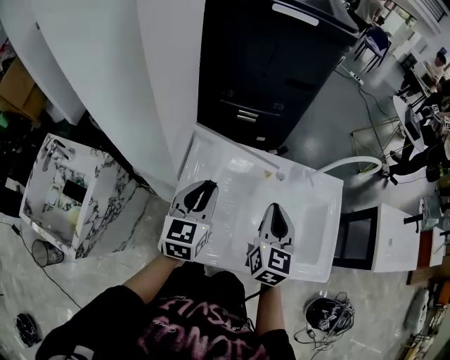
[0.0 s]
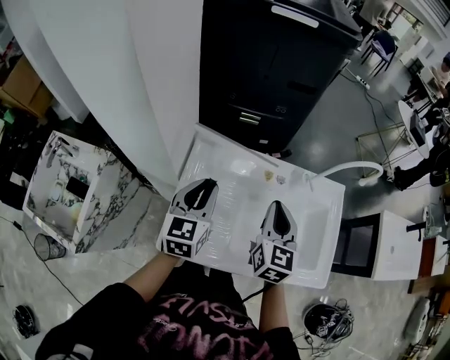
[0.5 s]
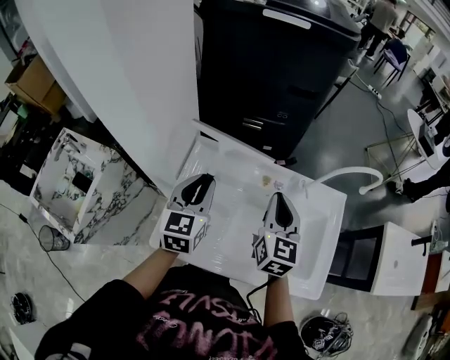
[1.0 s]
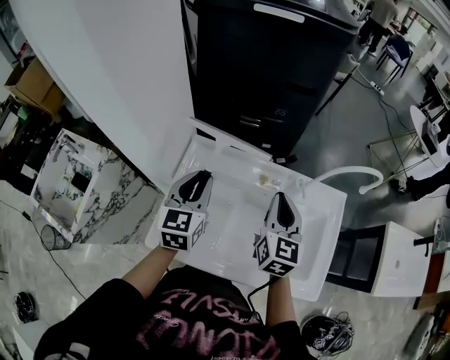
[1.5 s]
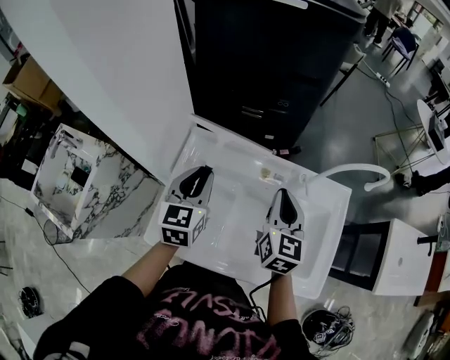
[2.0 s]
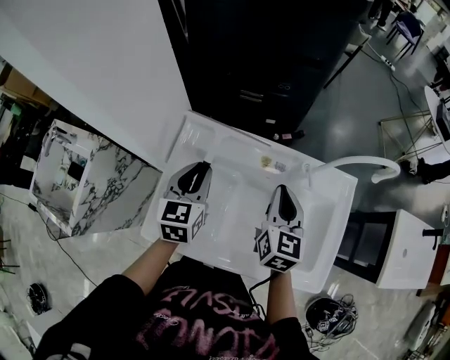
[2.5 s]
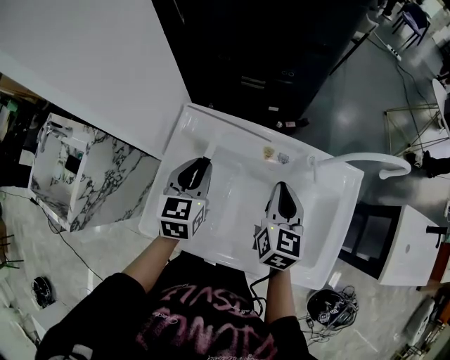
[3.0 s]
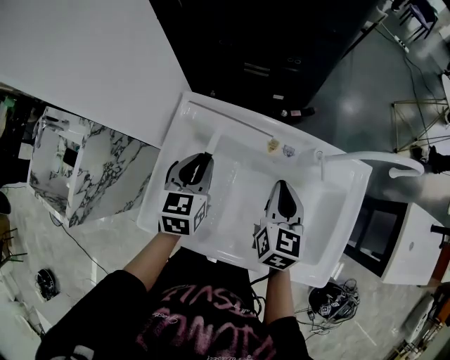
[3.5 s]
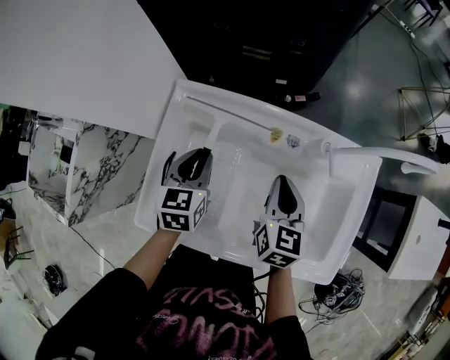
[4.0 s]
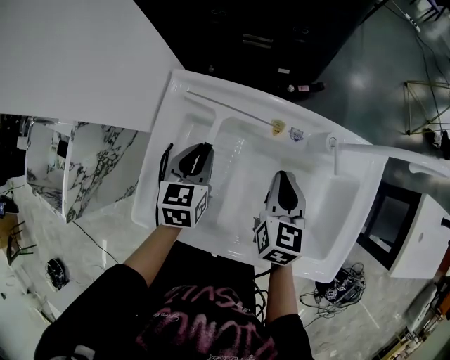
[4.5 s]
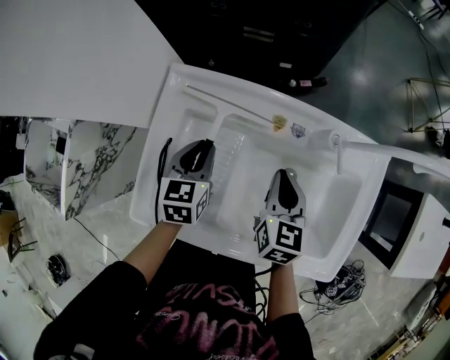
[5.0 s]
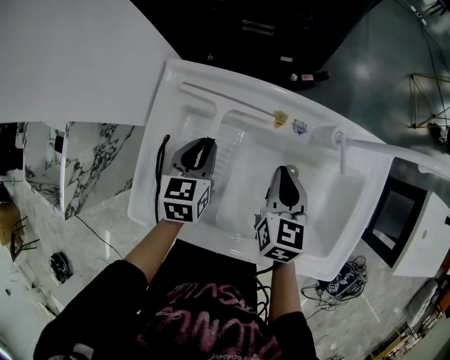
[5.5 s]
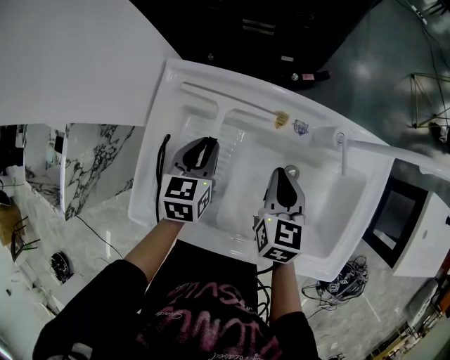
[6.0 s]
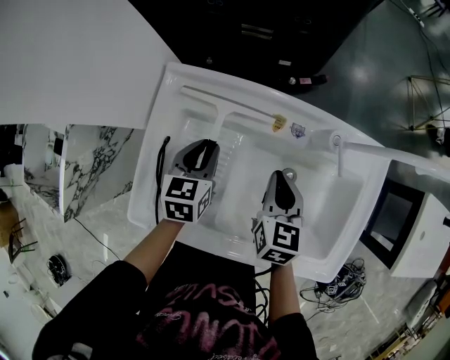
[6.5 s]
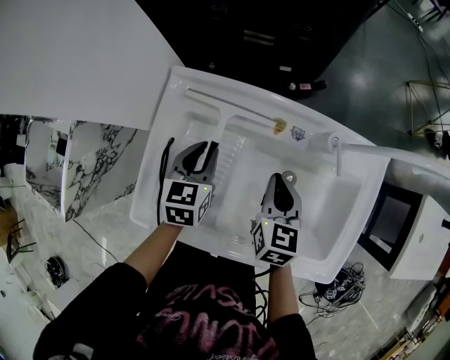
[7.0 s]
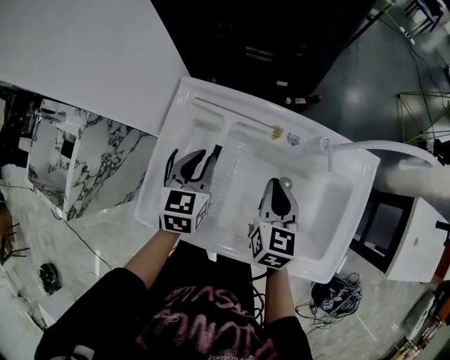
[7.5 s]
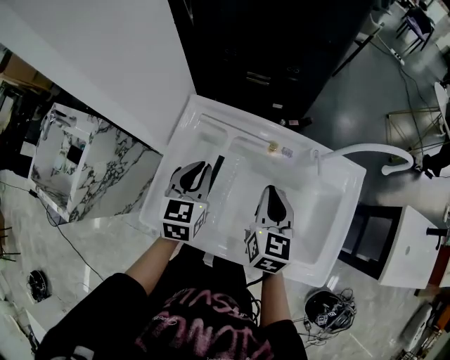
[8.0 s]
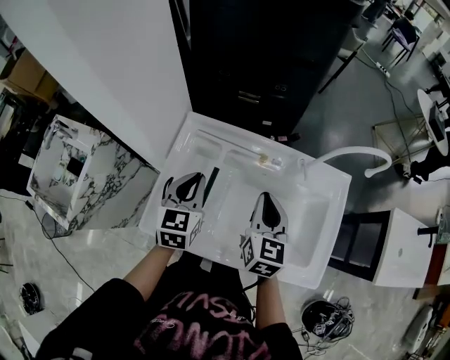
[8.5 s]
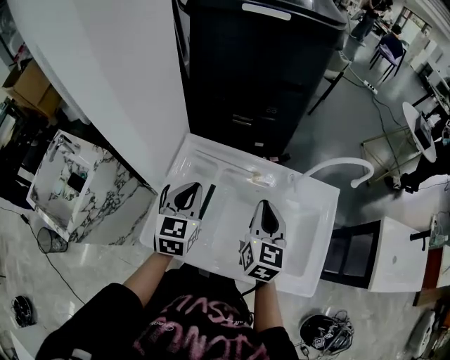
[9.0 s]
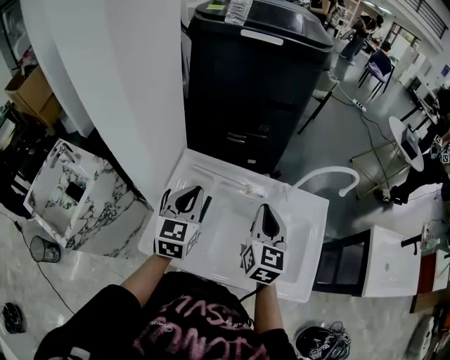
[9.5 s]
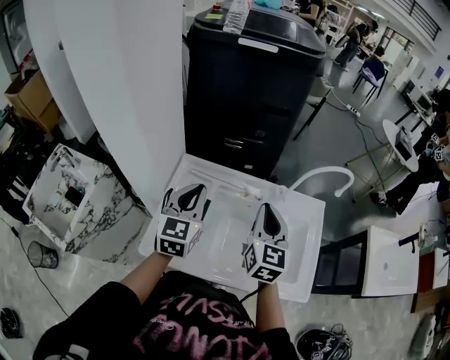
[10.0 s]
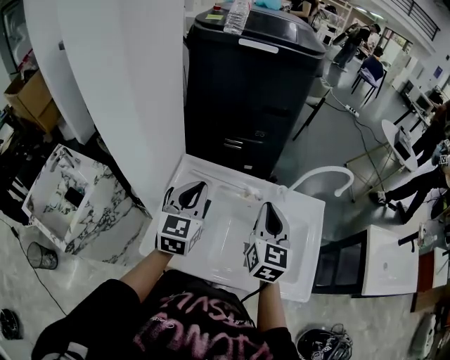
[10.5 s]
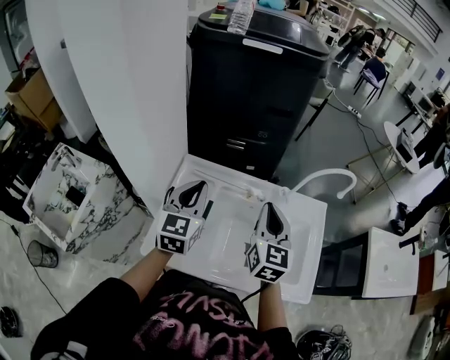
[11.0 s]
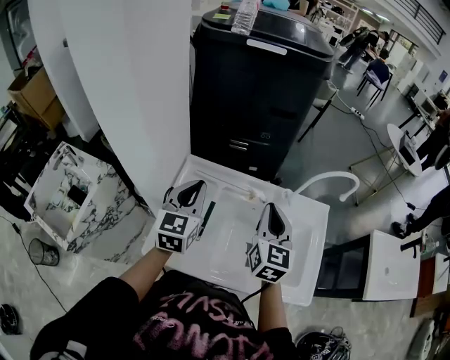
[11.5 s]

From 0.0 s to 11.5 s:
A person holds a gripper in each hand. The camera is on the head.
From 0.0 s to 2.0 s: The left gripper changes place by approximately 5 cm; the right gripper heads forward and to the right, covering approximately 10 cm.
From 2.0 s to 4.0 s: Both grippers travel together downward, about 15 cm.
From 4.0 s to 6.0 s: Both grippers travel together downward, approximately 5 cm.
From 6.0 s to 7.5 s: The grippers both shift upward by roughly 5 cm.
From 7.5 s to 9.5 s: The two grippers go approximately 15 cm upward.
From 9.5 s to 11.5 s: The grippers stay close to where they were, moving slightly.

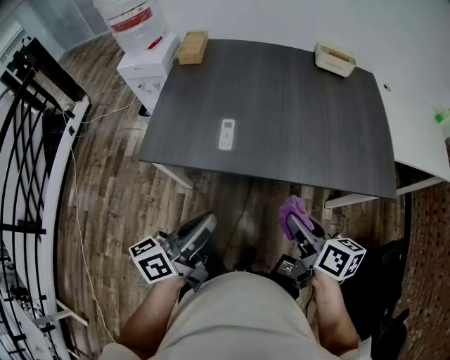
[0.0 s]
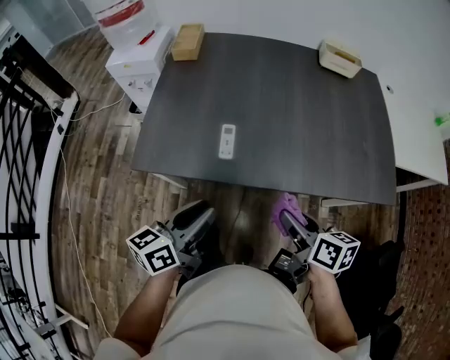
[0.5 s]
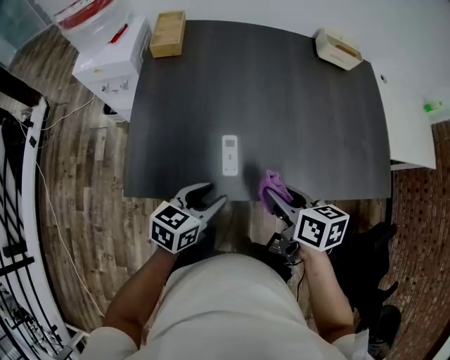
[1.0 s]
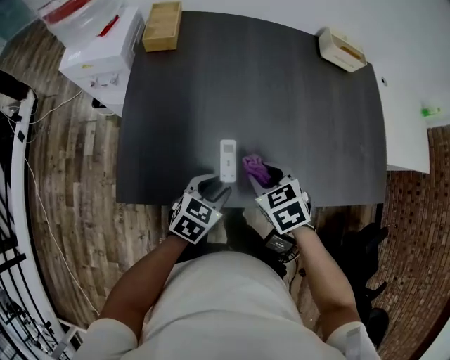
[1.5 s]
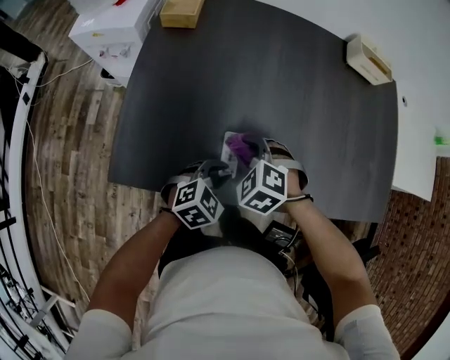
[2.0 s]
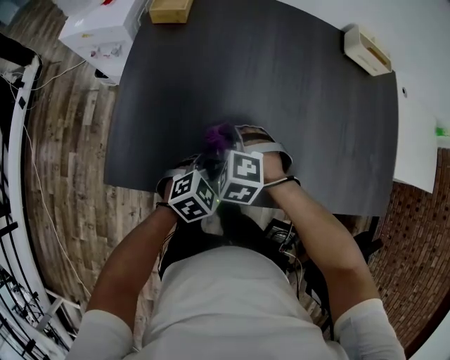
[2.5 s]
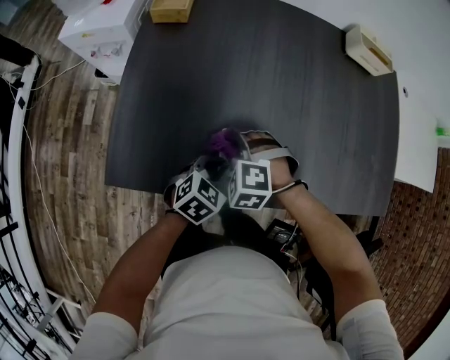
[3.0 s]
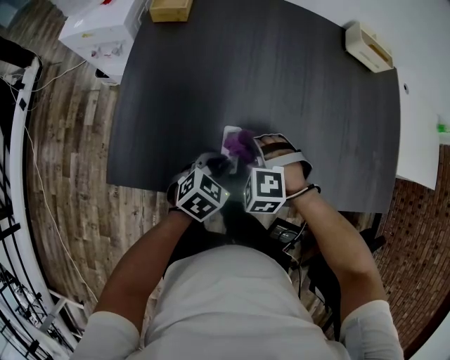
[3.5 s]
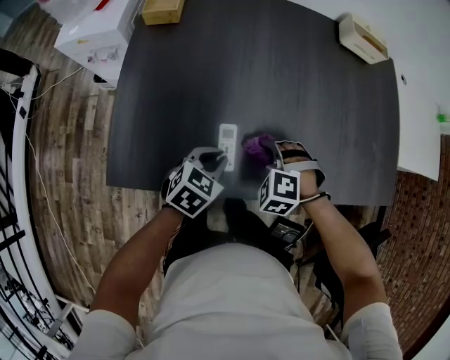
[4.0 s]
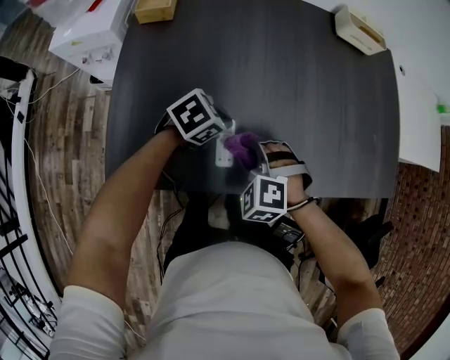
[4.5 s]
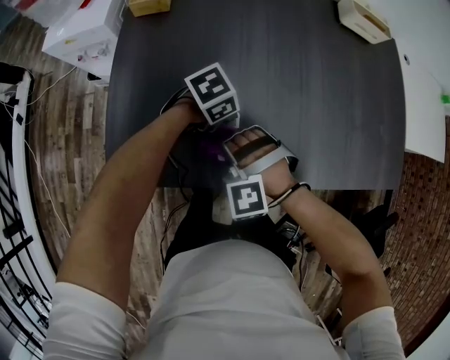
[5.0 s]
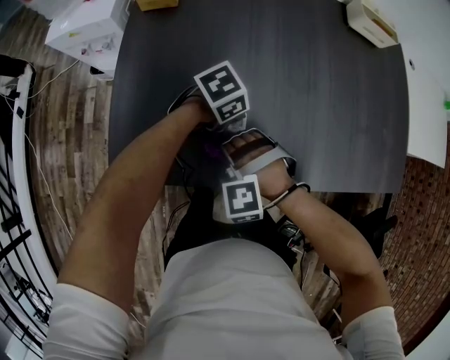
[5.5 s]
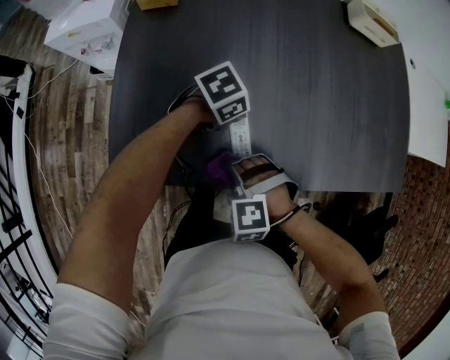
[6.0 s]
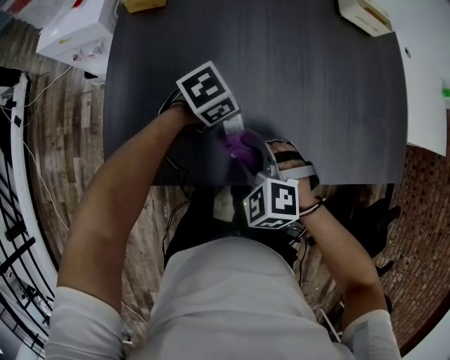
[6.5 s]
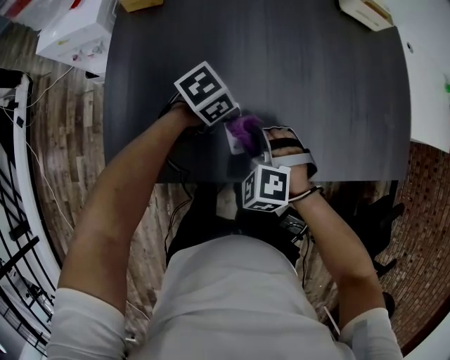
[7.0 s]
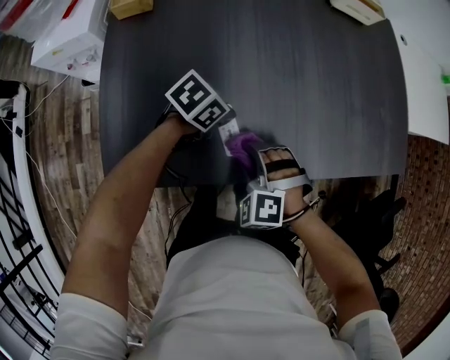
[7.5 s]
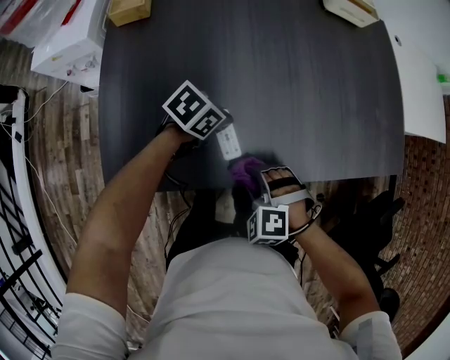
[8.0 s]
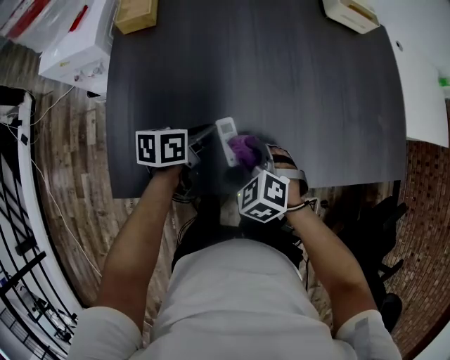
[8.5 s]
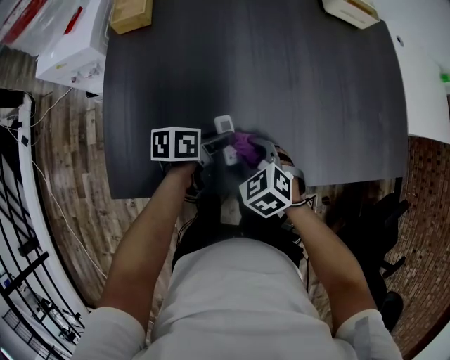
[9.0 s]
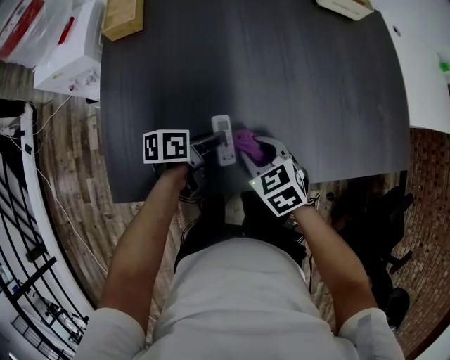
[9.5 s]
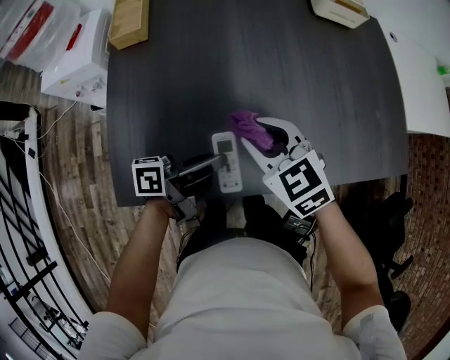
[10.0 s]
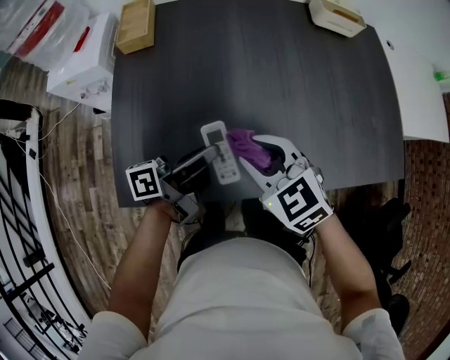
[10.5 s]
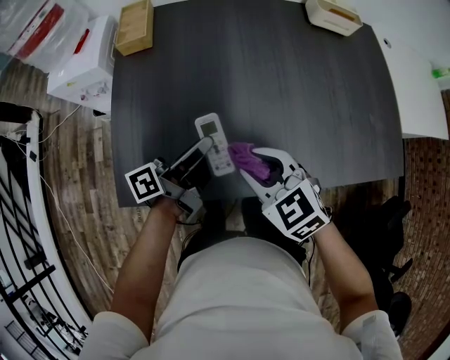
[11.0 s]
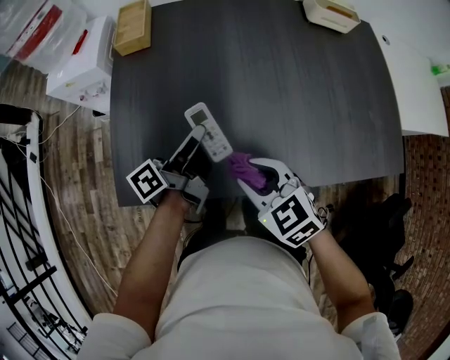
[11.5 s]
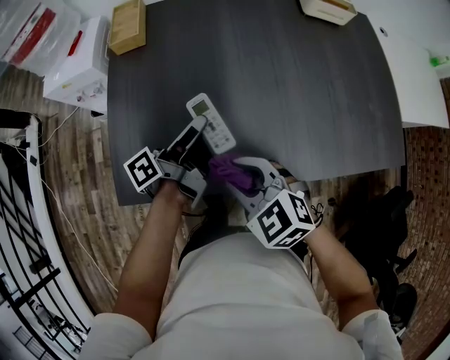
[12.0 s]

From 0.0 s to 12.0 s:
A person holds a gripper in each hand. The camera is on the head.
From 0.0 s to 2.0 s: The left gripper travels forward and downward by some 30 cm, and tips its fingers downward by approximately 50 degrees, while the right gripper shifts some 35 cm forward, to the left and downward, and rolls counterclockwise, seen from behind, by approximately 80 degrees.
From 2.0 s to 4.0 s: The right gripper shifts about 5 cm to the right.
From 4.0 s to 6.0 s: The right gripper moves about 15 cm, while the left gripper ends up about 10 cm from where it was, and turns by approximately 40 degrees.
From 6.0 s to 8.0 s: The right gripper ends up roughly 10 cm from where it was.
From 8.0 s to 10.0 s: The right gripper shifts some 20 cm upward and forward, and turns by approximately 50 degrees; the left gripper shifts approximately 15 cm upward and backward, and tilts its fingers some 50 degrees upward.
From 10.0 s to 12.0 s: The left gripper goes approximately 5 cm forward, and turns by some 30 degrees; the right gripper heads backward, covering about 10 cm.

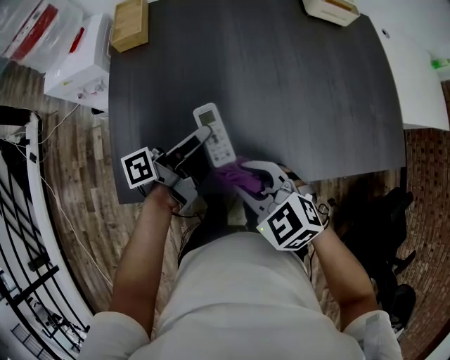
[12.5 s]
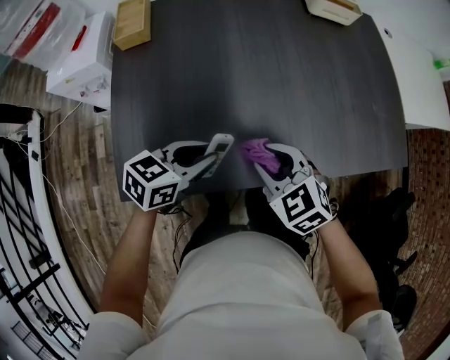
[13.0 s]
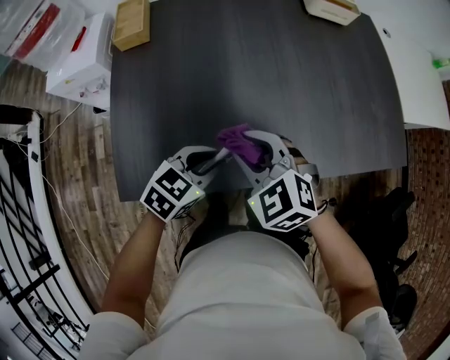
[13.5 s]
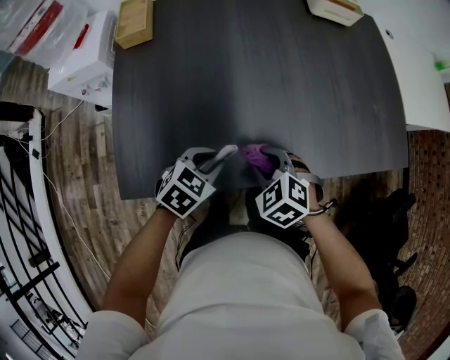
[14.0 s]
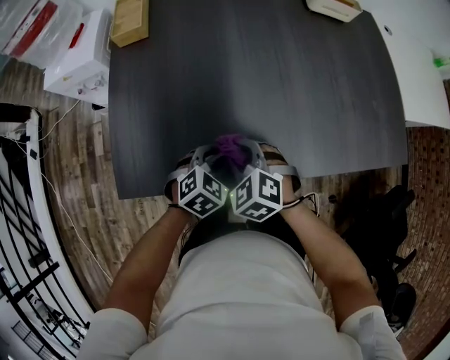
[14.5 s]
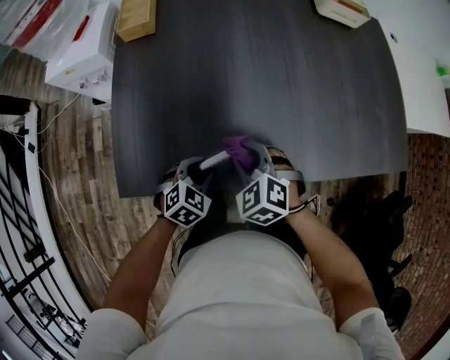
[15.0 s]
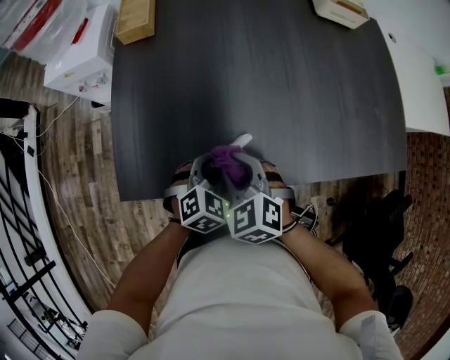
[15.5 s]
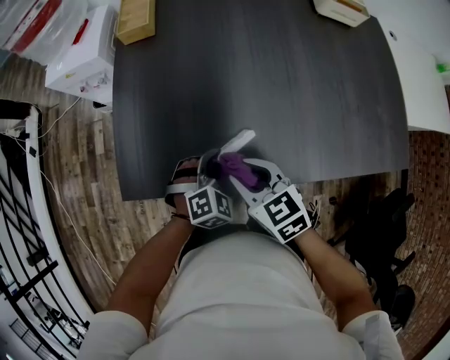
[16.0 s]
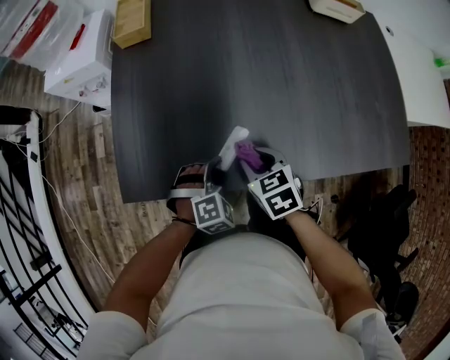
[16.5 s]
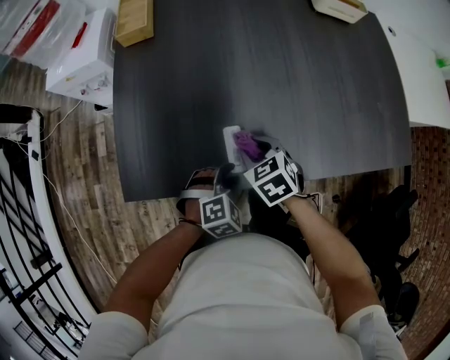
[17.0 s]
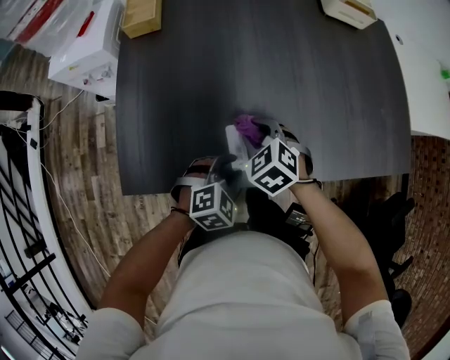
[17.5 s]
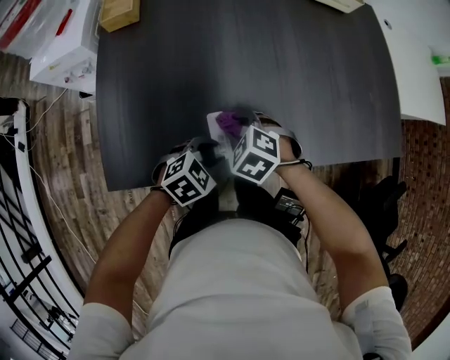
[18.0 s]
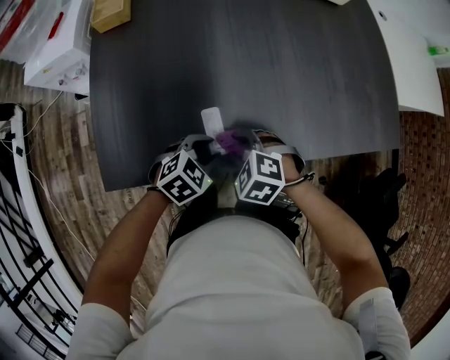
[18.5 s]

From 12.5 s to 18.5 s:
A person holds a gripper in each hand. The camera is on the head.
From 12.5 s to 14.5 s: The left gripper goes about 15 cm downward and backward, and rolls clockwise, seen from behind, by about 90 degrees. Meanwhile the right gripper moves downward, roughly 10 cm.
From 14.5 s to 16.5 s: The right gripper swivels approximately 40 degrees; the left gripper rotates roughly 30 degrees.
From 16.5 s to 18.5 s: The right gripper goes forward and returns, approximately 5 cm each way, and rotates around the line of its fingers by about 40 degrees, counterclockwise from behind. Meanwhile the left gripper rotates about 30 degrees.
